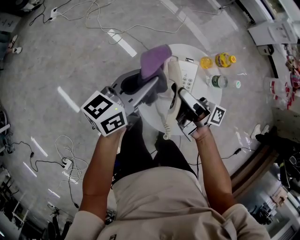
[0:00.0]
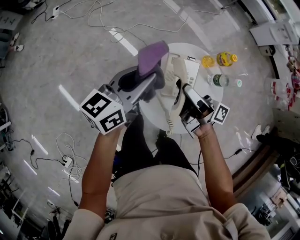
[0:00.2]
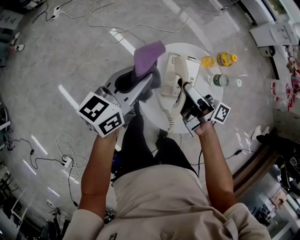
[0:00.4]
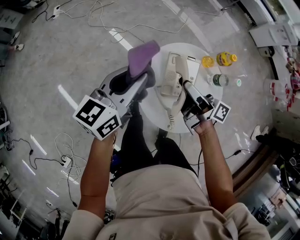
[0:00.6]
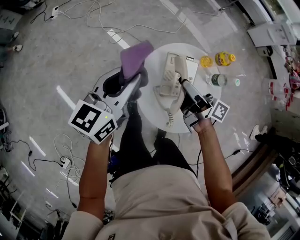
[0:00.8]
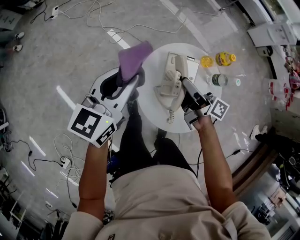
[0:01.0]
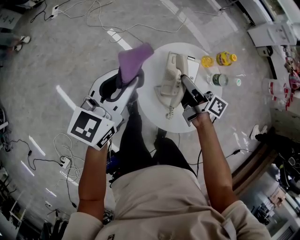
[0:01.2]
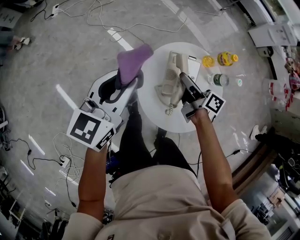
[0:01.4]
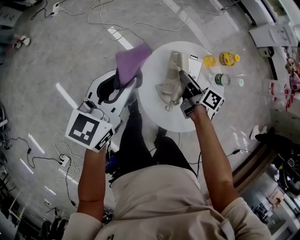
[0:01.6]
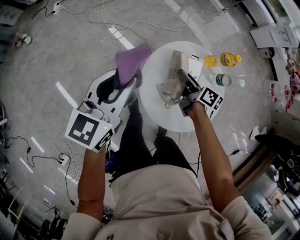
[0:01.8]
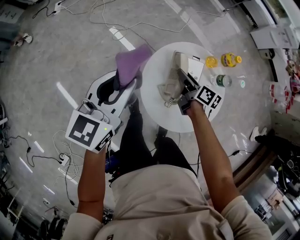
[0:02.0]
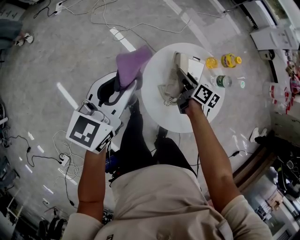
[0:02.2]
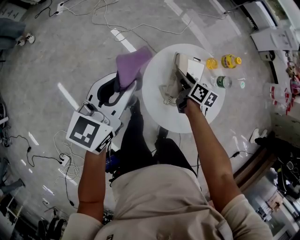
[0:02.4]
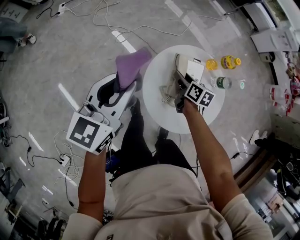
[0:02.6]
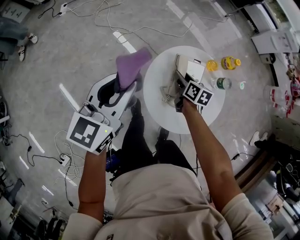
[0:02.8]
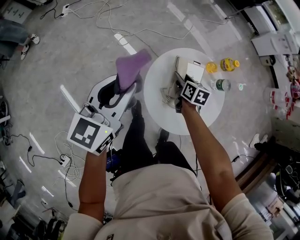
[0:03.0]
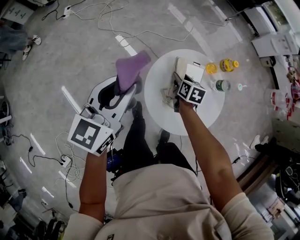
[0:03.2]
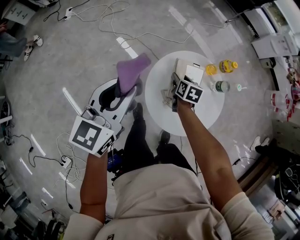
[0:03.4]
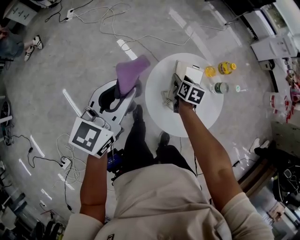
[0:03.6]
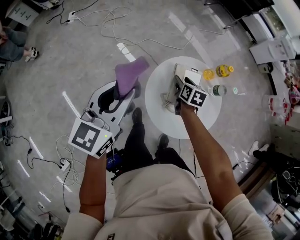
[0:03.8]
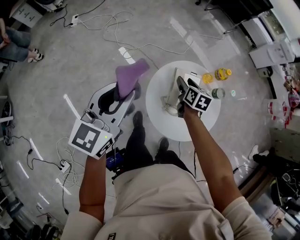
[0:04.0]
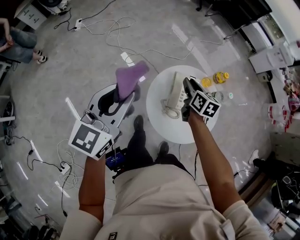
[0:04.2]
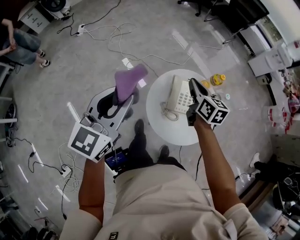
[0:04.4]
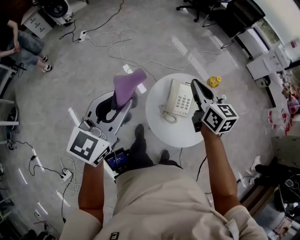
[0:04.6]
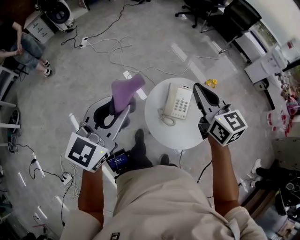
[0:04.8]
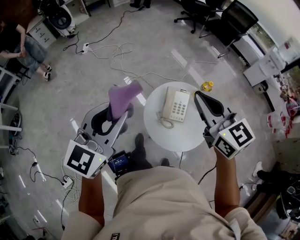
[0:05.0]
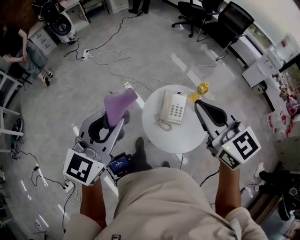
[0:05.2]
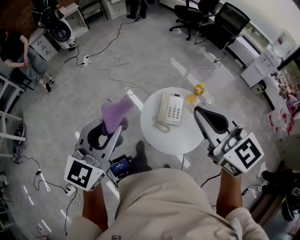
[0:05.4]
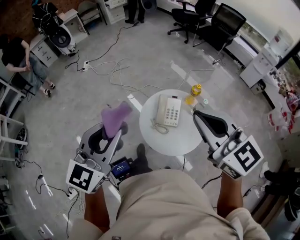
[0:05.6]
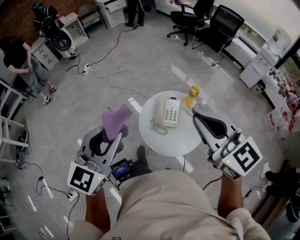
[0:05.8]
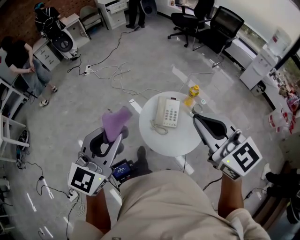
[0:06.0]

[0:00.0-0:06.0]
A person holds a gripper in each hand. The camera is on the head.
0:00.0 to 0:01.6: The left gripper is displaced to the left by approximately 10 cm, and swivels approximately 20 degrees. The right gripper shifts about 10 cm downward, and points its fingers about 30 degrees further downward.
0:01.6 to 0:03.0: The right gripper moves downward, about 5 cm, and turns by approximately 30 degrees.
0:03.0 to 0:04.4: The left gripper moves upward and backward, some 15 cm; the right gripper moves upward, roughly 25 cm, swivels some 20 degrees, and closes up.
0:04.4 to 0:06.0: The left gripper shifts some 25 cm backward, upward and to the right, while the right gripper moves upward and backward, some 40 cm, and changes its angle by roughly 40 degrees.

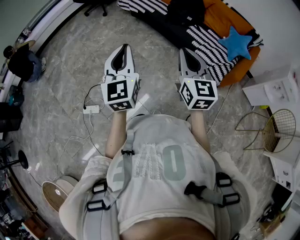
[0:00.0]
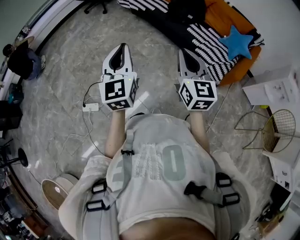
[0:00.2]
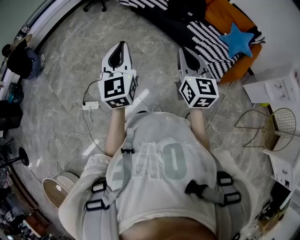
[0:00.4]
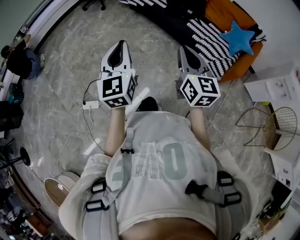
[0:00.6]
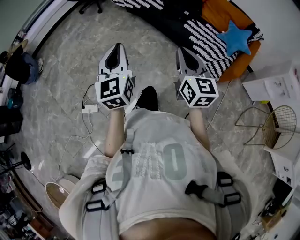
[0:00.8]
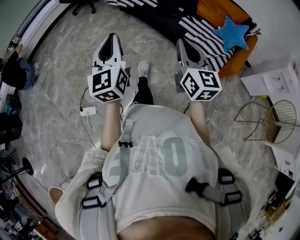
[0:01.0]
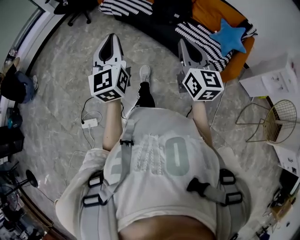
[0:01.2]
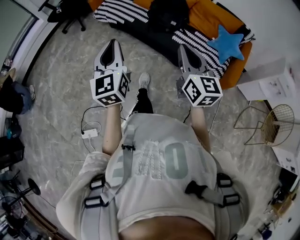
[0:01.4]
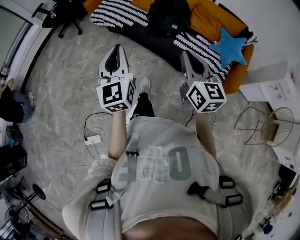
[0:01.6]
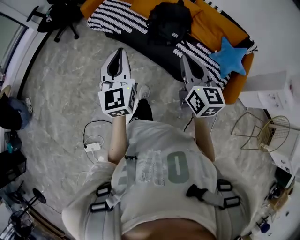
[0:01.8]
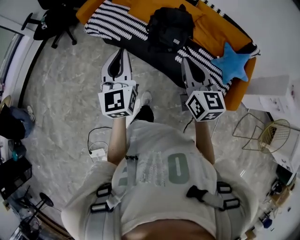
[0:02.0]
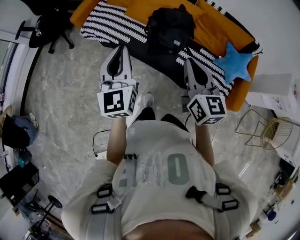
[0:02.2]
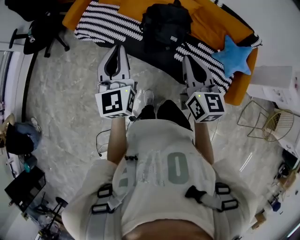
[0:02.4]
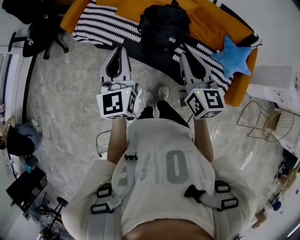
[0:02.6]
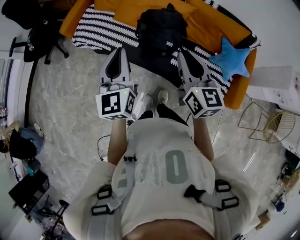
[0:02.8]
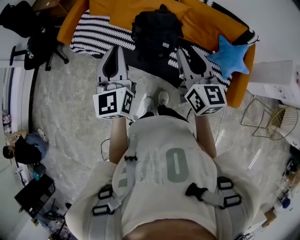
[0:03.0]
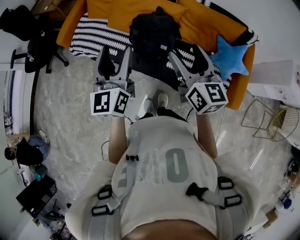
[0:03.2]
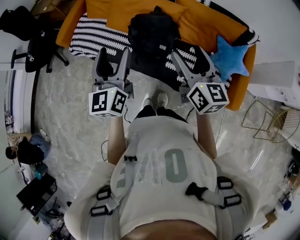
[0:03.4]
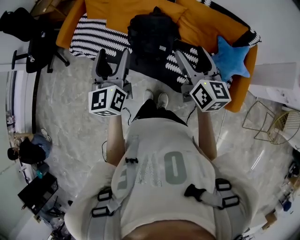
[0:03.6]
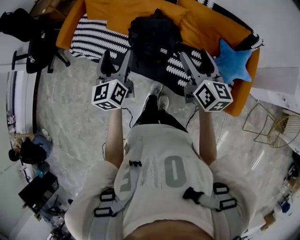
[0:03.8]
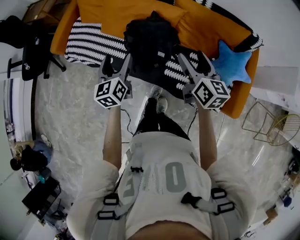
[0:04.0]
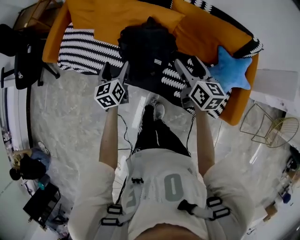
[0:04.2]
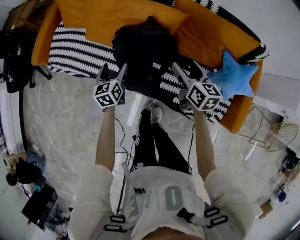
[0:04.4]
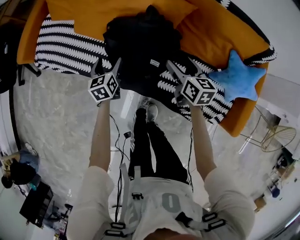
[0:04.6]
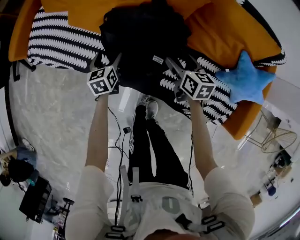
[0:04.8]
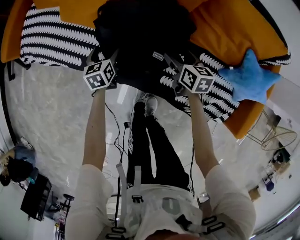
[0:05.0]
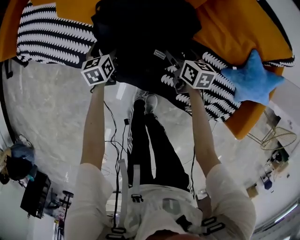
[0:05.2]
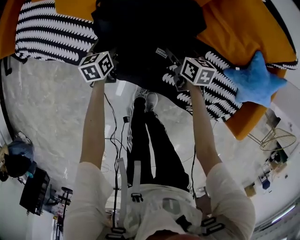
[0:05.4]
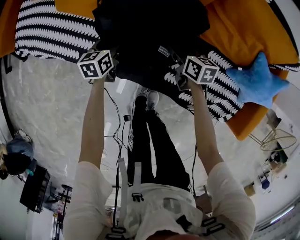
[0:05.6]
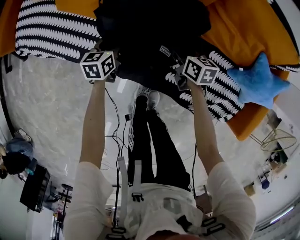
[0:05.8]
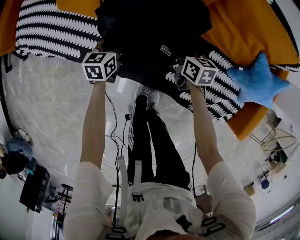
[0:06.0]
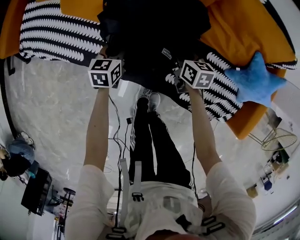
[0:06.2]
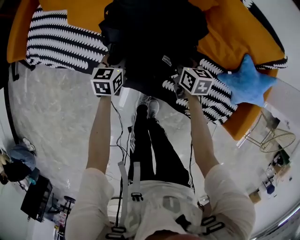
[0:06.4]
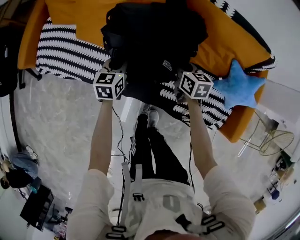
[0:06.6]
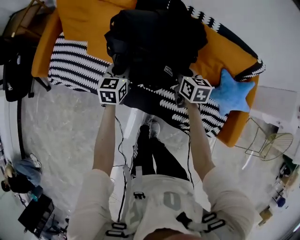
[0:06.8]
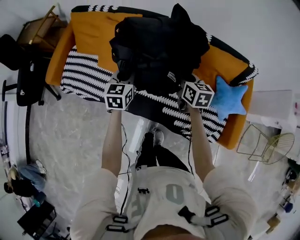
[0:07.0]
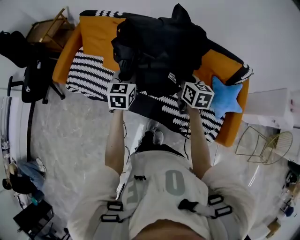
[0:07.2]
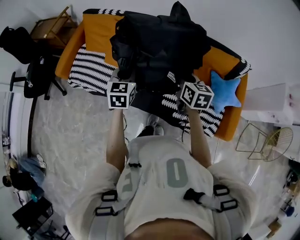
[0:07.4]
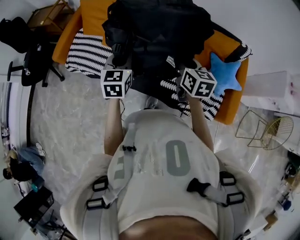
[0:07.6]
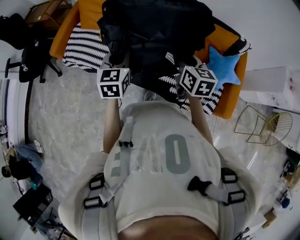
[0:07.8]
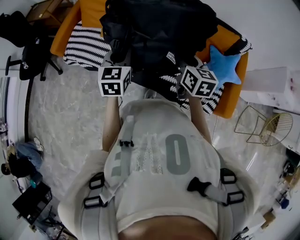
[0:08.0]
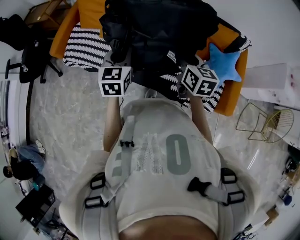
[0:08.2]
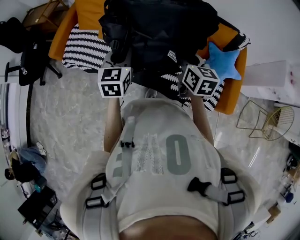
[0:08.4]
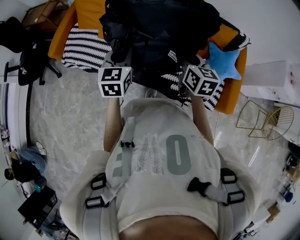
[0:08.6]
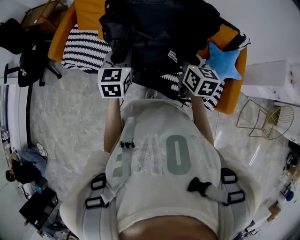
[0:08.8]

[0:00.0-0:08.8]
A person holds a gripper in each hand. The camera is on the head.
0:00.0 to 0:01.4: The left gripper moves forward, roughly 25 cm. The right gripper heads forward and to the right, covering about 20 cm.
0:01.4 to 0:03.0: The grippers both shift forward by approximately 40 cm.
0:03.0 to 0:04.4: Both grippers travel together downward and forward, approximately 40 cm. The right gripper rotates roughly 20 degrees, and opens up. The left gripper angles its fingers downward, by about 30 degrees, and opens.
0:04.4 to 0:05.8: The two grippers go some 30 cm downward. The left gripper closes its fingers; the right gripper turns by approximately 20 degrees, and closes up.
0:05.8 to 0:07.4: The two grippers go some 50 cm upward. The left gripper swivels about 30 degrees; the right gripper changes its angle by about 20 degrees.
0:07.4 to 0:08.8: Both grippers move backward, some 5 cm.

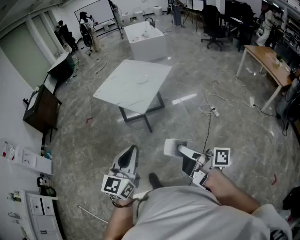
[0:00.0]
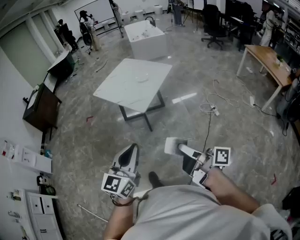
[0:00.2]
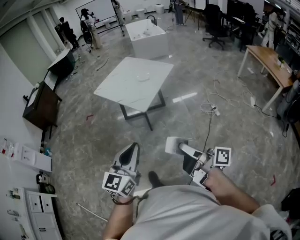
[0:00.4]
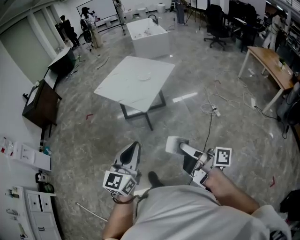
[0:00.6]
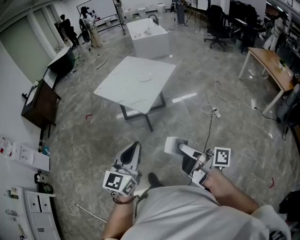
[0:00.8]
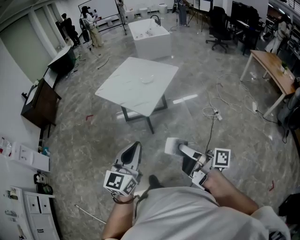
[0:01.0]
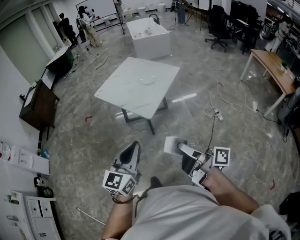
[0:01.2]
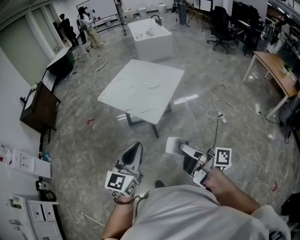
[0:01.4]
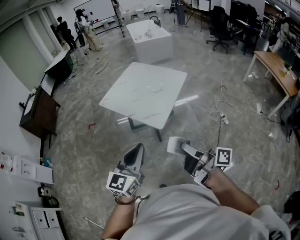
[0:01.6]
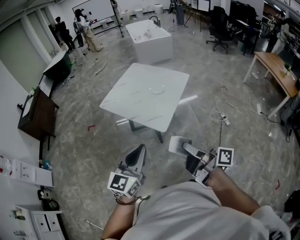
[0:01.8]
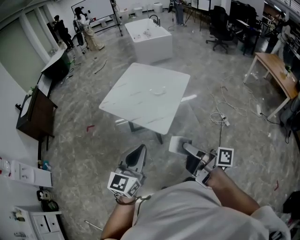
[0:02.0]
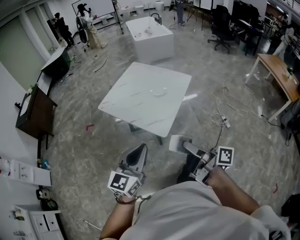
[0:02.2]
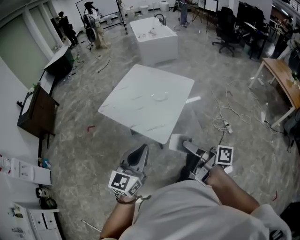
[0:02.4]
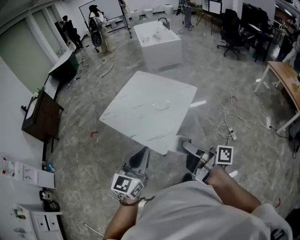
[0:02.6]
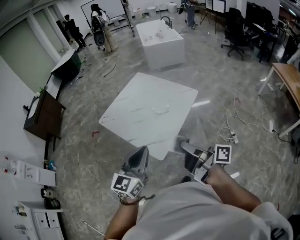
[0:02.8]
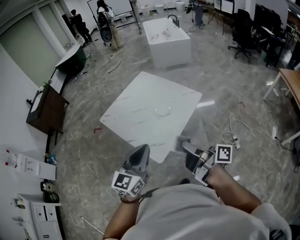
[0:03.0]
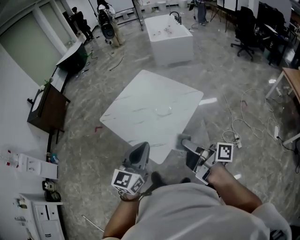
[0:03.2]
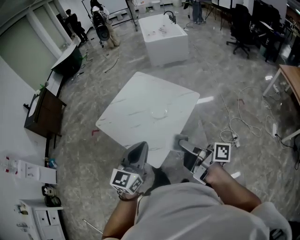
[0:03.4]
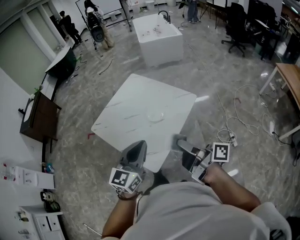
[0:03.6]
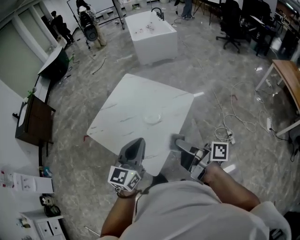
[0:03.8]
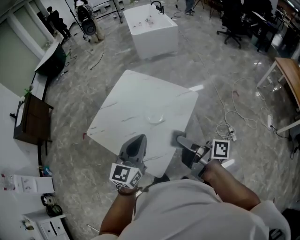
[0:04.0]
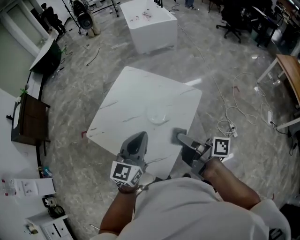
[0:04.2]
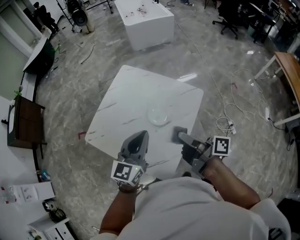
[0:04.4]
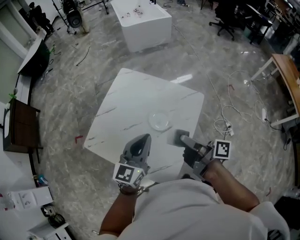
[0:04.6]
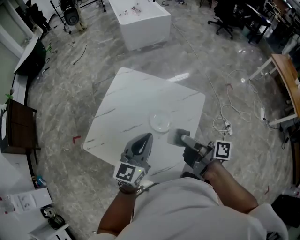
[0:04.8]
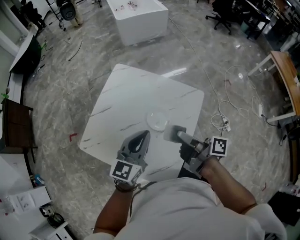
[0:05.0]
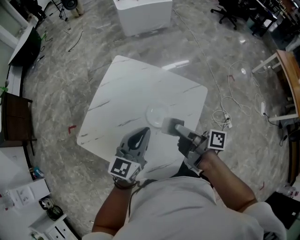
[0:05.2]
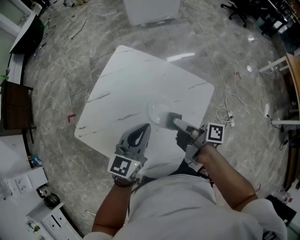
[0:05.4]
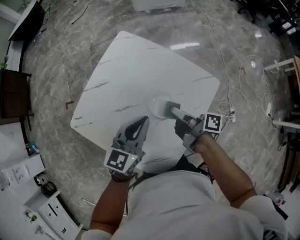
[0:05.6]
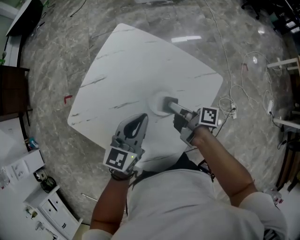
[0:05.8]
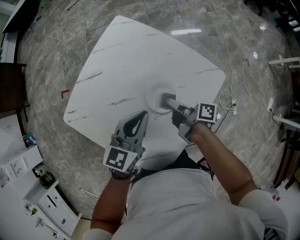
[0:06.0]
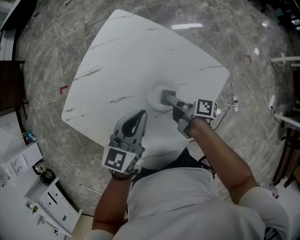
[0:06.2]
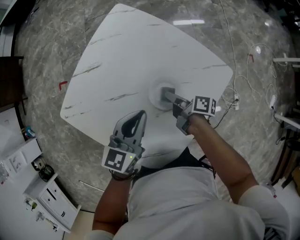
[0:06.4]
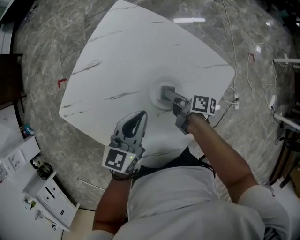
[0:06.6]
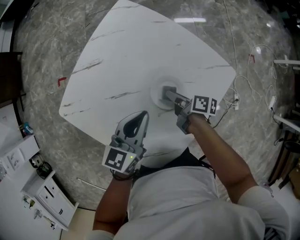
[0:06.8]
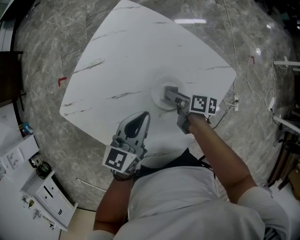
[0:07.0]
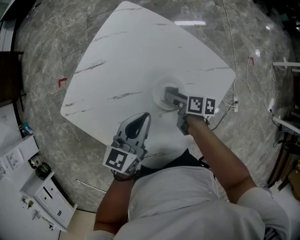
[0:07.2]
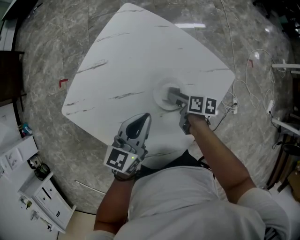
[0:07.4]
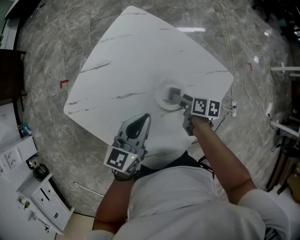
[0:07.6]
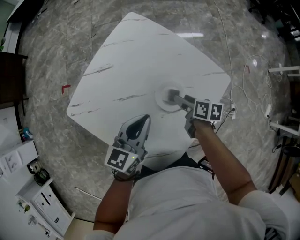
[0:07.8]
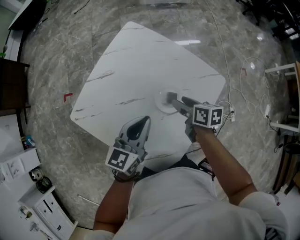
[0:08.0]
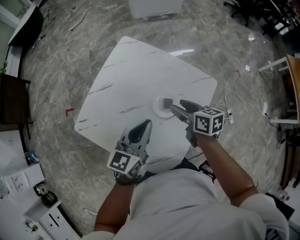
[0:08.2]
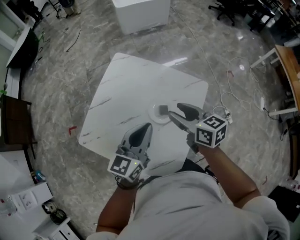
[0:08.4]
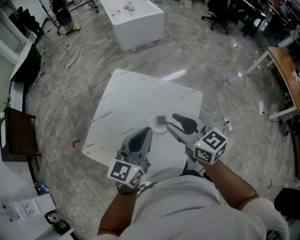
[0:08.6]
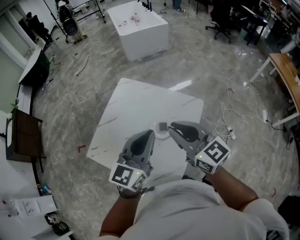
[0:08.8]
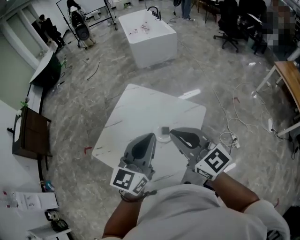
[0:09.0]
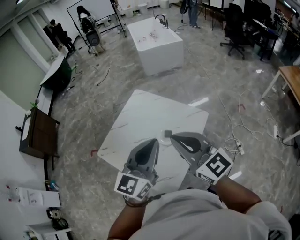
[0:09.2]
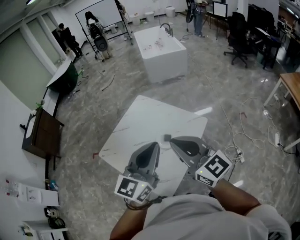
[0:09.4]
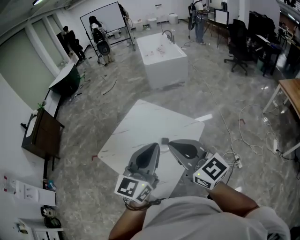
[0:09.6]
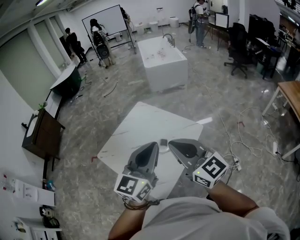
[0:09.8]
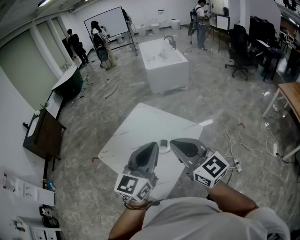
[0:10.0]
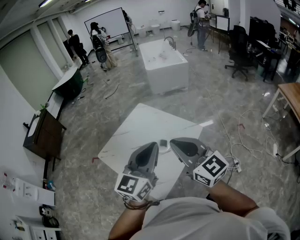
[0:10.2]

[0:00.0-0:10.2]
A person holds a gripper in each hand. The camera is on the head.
0:00.0 to 0:01.4: The left gripper travels forward by about 20 cm. The right gripper shifts roughly 20 cm forward and to the left.
0:01.4 to 0:03.0: Both grippers move forward, roughly 35 cm.
0:03.0 to 0:04.4: The two grippers go roughly 30 cm forward.
0:04.4 to 0:05.8: The grippers both shift downward and forward by some 25 cm.
0:05.8 to 0:07.2: The left gripper is displaced downward by roughly 5 cm. The right gripper goes about 10 cm downward, turns by roughly 30 degrees, and opens.
0:07.2 to 0:08.8: The left gripper heads upward, covering about 30 cm, and turns by approximately 30 degrees; the right gripper travels upward by some 50 cm, rolls counterclockwise, seen from behind, by roughly 60 degrees, and closes its fingers.
0:08.8 to 0:10.2: The two grippers go roughly 20 cm backward and upward.
